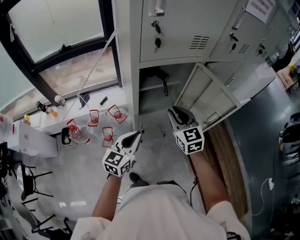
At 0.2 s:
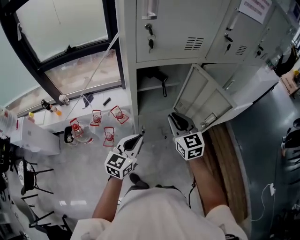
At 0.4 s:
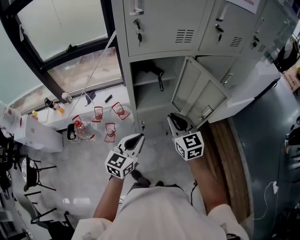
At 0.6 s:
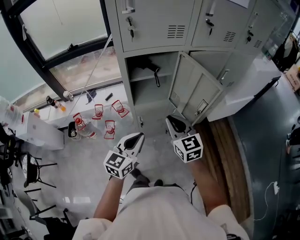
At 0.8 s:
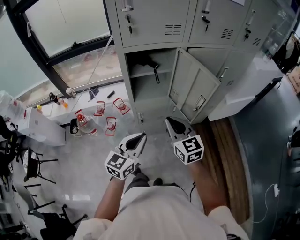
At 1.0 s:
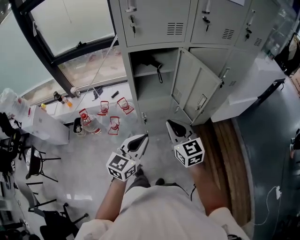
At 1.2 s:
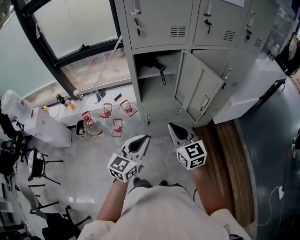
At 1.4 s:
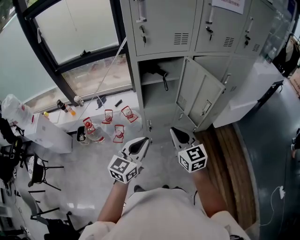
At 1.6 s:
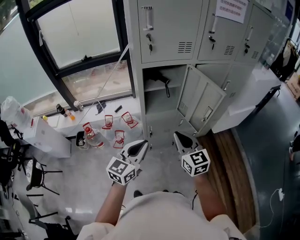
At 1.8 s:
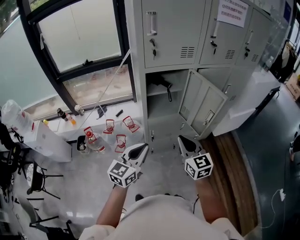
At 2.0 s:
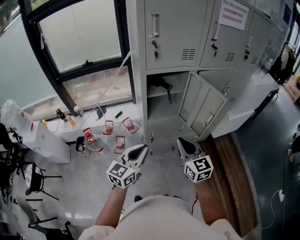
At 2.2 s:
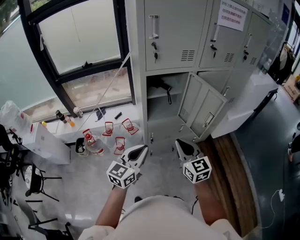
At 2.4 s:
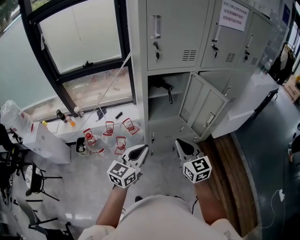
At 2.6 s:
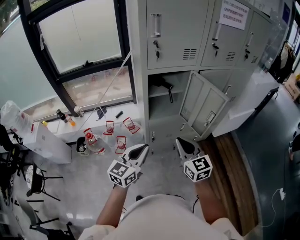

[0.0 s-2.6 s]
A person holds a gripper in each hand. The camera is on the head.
0.0 to 1.2 s: The right gripper heads backward, covering approximately 20 cm, while the left gripper heads backward and to the right, covering about 20 cm.
1.2 to 2.6 s: The left gripper moves to the left, approximately 10 cm.

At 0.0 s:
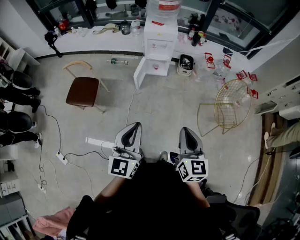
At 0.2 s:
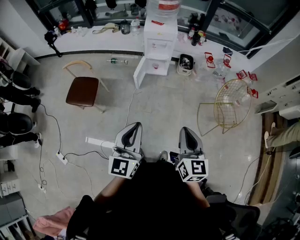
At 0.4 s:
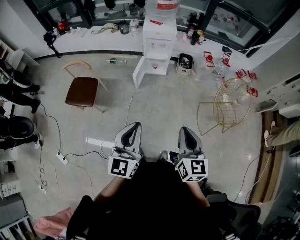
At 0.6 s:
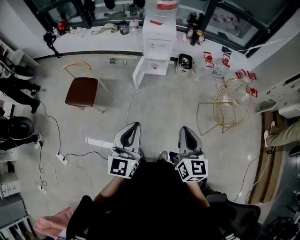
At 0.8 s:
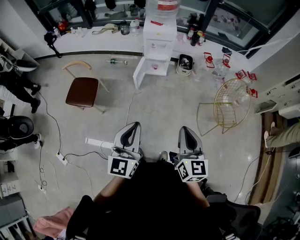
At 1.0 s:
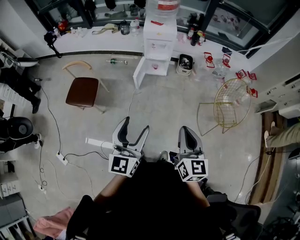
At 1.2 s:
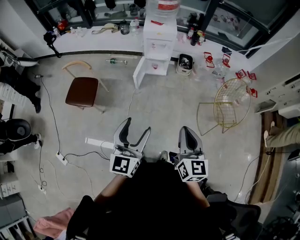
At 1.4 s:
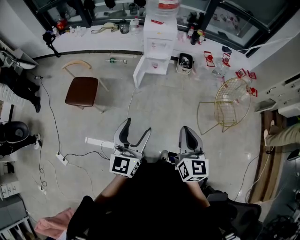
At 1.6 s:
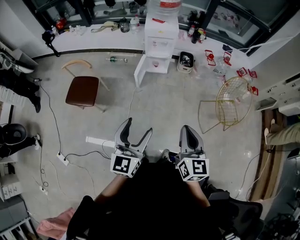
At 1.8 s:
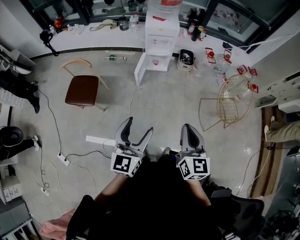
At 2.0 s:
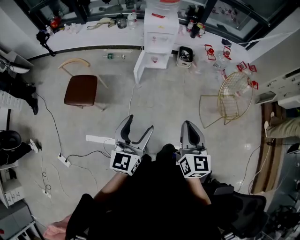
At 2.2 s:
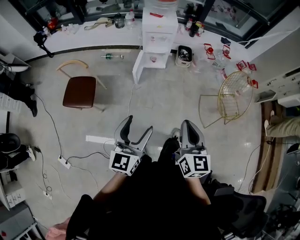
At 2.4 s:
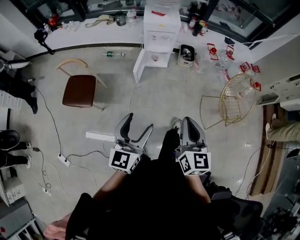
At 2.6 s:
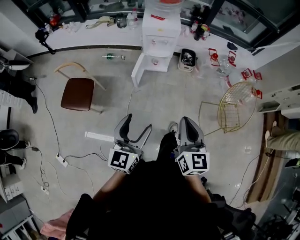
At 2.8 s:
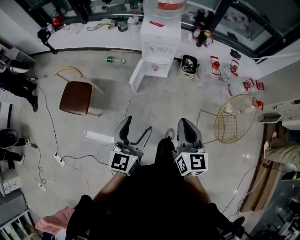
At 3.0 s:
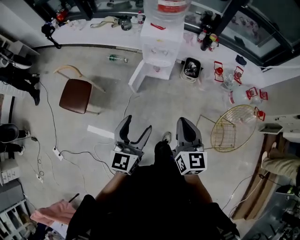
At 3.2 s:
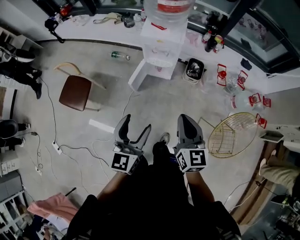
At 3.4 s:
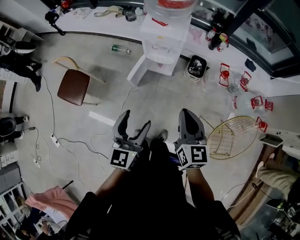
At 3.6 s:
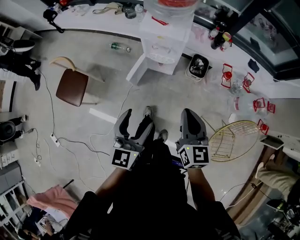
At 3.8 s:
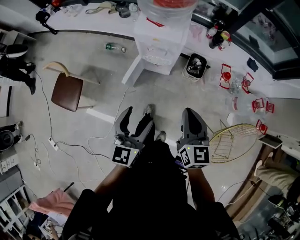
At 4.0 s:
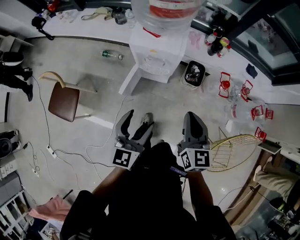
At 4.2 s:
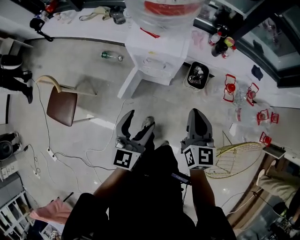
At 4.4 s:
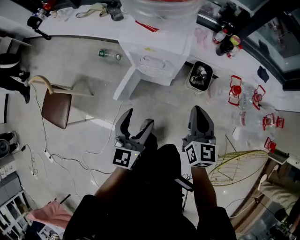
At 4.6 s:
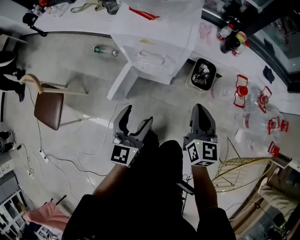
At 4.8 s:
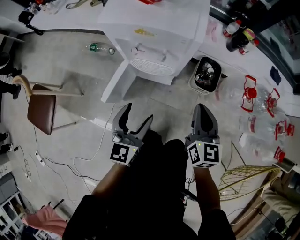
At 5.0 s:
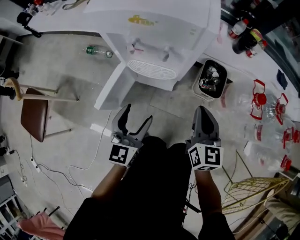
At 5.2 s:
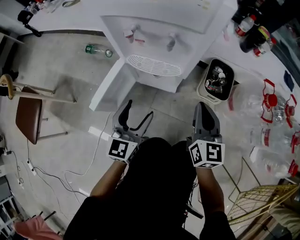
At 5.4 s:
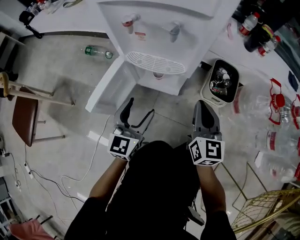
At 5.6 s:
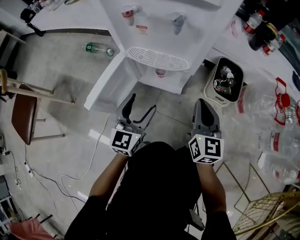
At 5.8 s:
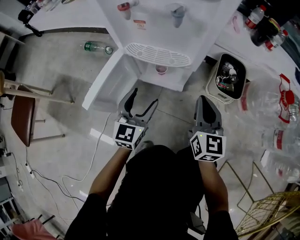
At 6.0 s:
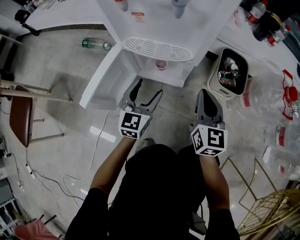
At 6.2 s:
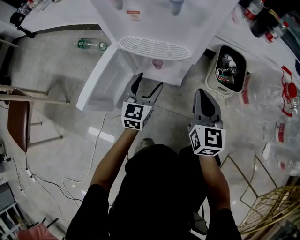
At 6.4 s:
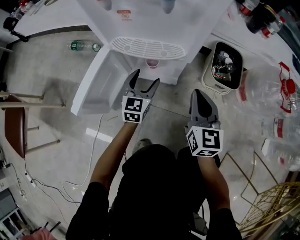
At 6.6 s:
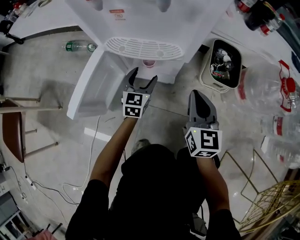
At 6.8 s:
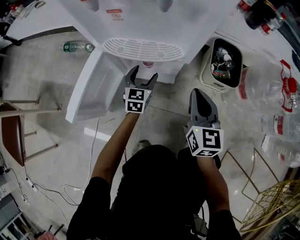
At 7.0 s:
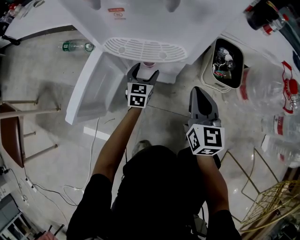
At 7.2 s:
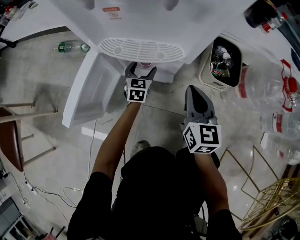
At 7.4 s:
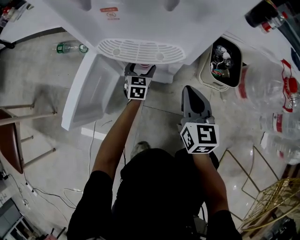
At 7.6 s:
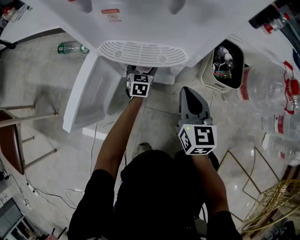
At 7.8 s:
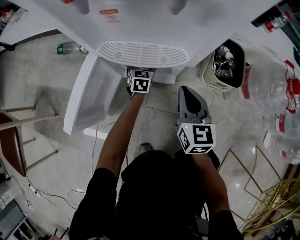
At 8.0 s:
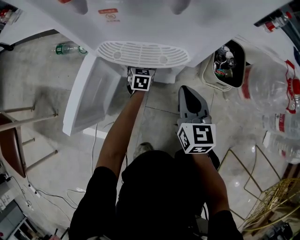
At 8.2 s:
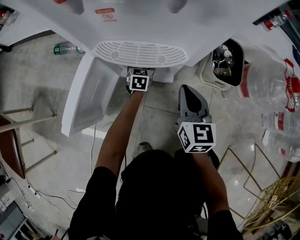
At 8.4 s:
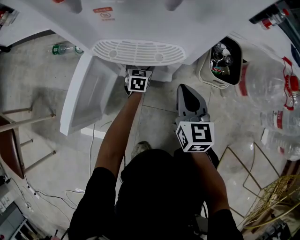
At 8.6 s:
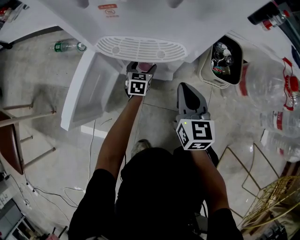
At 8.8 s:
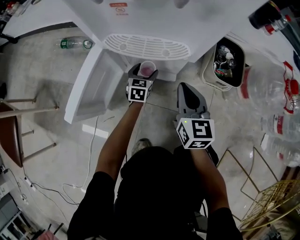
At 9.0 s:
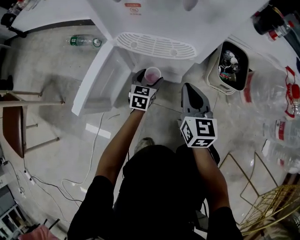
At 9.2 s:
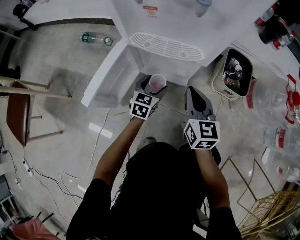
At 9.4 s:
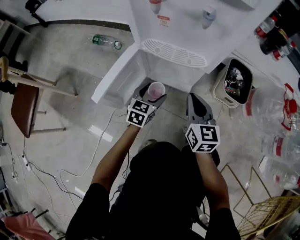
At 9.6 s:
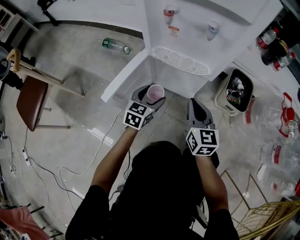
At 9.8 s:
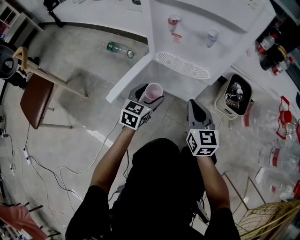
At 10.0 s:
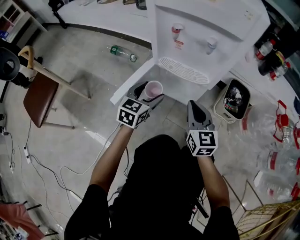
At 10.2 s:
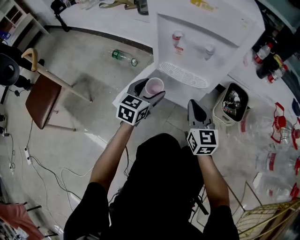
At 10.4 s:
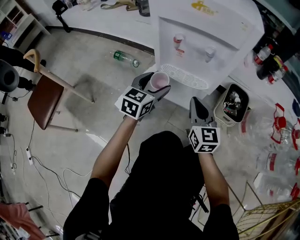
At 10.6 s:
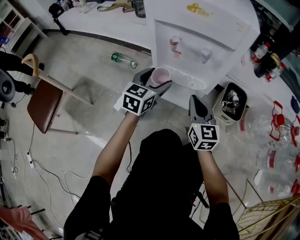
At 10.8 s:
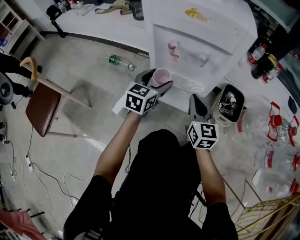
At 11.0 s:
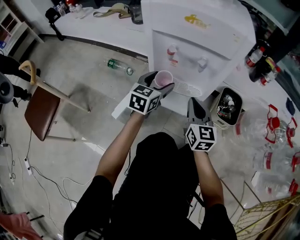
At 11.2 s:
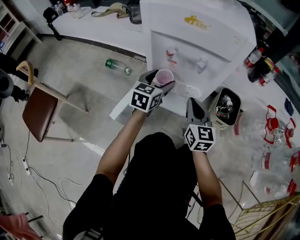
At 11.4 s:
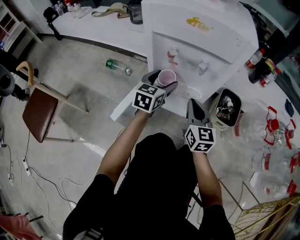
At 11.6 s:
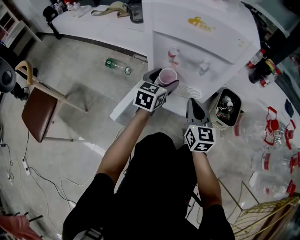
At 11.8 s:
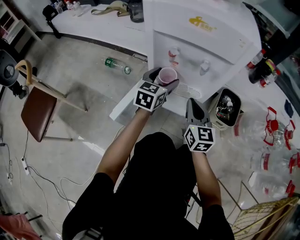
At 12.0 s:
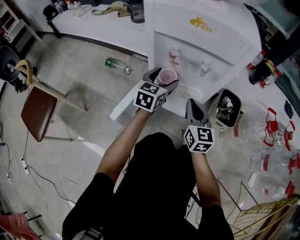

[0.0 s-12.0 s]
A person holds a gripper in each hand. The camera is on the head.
0.0 to 1.6 s: The left gripper opens.
1.6 to 3.0 s: The grippers both shift forward by some 30 cm.
3.0 to 4.4 s: Both grippers move forward and downward, approximately 40 cm.
4.4 to 6.0 s: Both grippers travel together downward, approximately 50 cm.
6.0 to 7.6 s: The left gripper travels downward and forward by approximately 25 cm, while the right gripper goes about 5 cm downward.
7.6 to 9.0 s: The left gripper is displaced backward by approximately 10 cm.
9.0 to 10.4 s: The left gripper shifts about 30 cm upward; the right gripper shifts approximately 15 cm upward.
10.4 to 12.0 s: The left gripper travels forward by approximately 10 cm.

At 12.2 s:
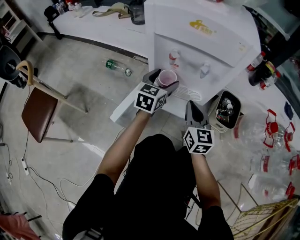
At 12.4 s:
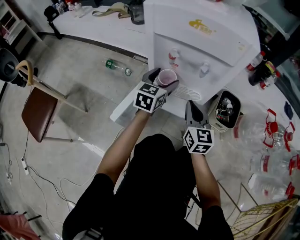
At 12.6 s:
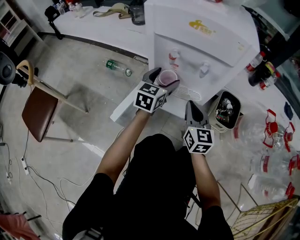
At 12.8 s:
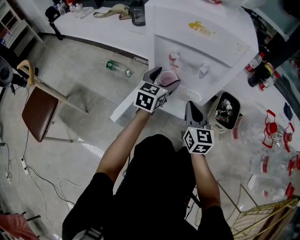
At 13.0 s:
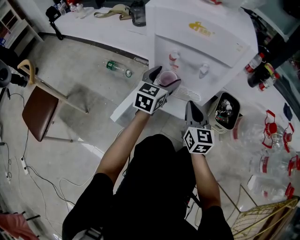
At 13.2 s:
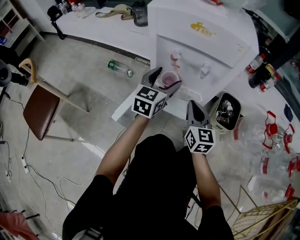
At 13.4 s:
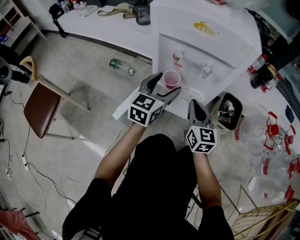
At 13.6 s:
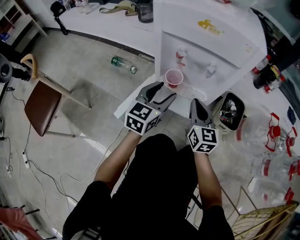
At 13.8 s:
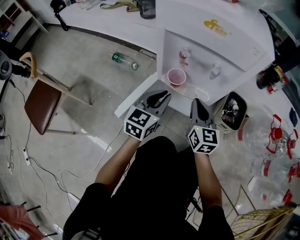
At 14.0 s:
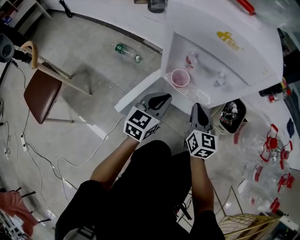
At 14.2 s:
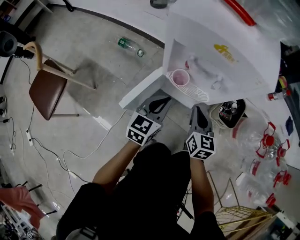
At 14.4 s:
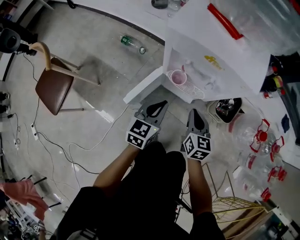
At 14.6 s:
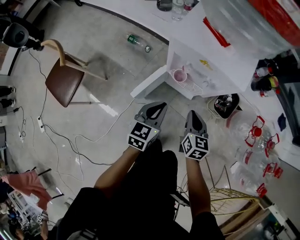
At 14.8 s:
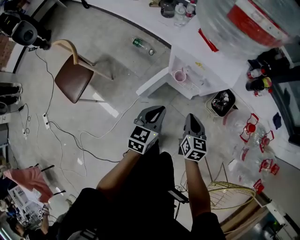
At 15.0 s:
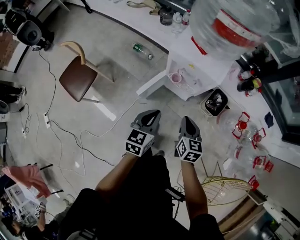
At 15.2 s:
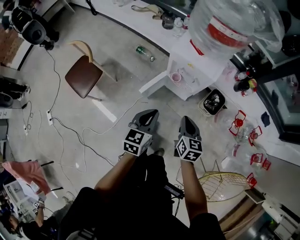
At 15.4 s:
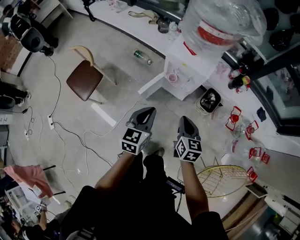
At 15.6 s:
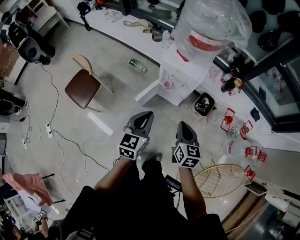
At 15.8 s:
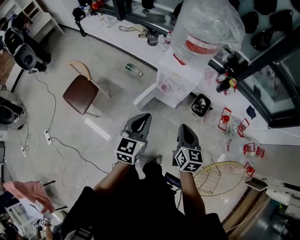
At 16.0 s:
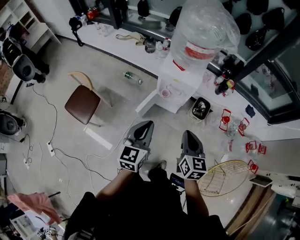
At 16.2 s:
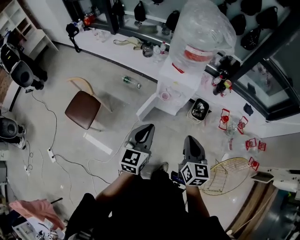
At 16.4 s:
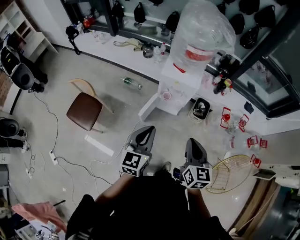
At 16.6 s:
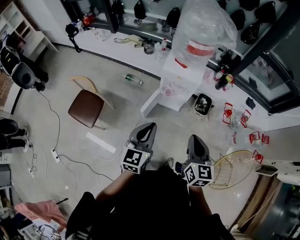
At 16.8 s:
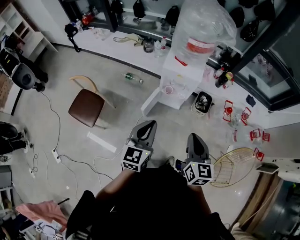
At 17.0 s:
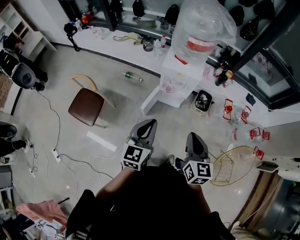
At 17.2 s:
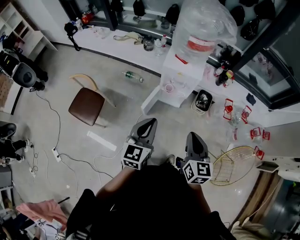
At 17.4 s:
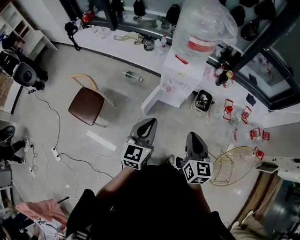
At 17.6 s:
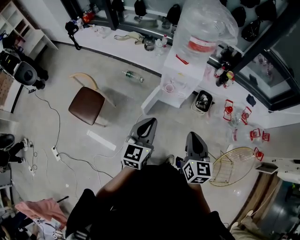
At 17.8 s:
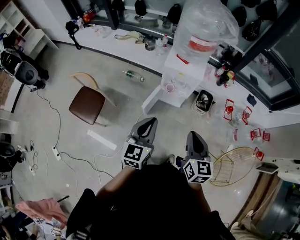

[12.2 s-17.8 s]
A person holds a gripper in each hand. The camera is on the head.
12.2 to 13.6 s: The left gripper shifts approximately 10 cm backward.
13.6 to 15.0 s: Both grippers travel together upward and backward, about 35 cm. The left gripper turns by some 20 degrees, and closes its fingers. The right gripper changes its angle by about 30 degrees.
15.0 to 16.4 s: Both grippers travel together upward and backward, roughly 35 cm.
16.4 to 17.8 s: The grippers stay close to where they were, moving slightly.

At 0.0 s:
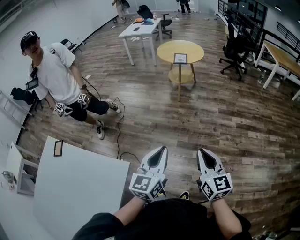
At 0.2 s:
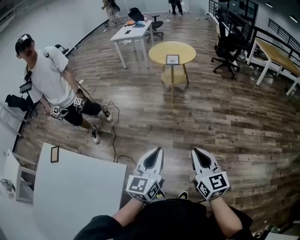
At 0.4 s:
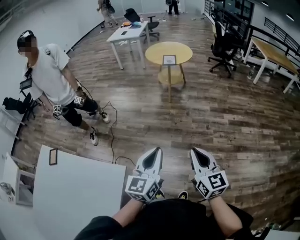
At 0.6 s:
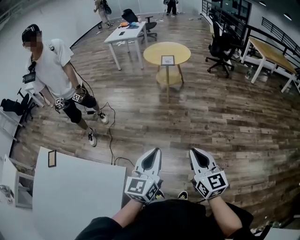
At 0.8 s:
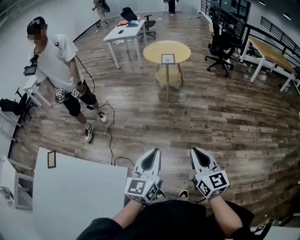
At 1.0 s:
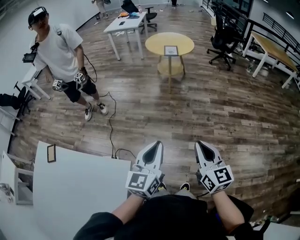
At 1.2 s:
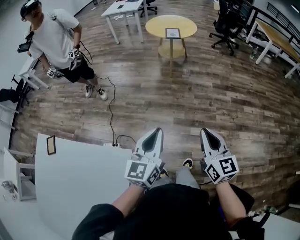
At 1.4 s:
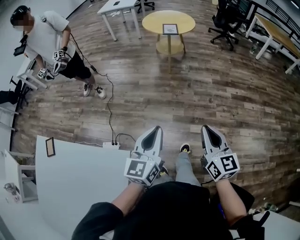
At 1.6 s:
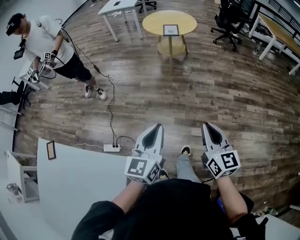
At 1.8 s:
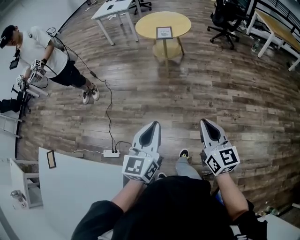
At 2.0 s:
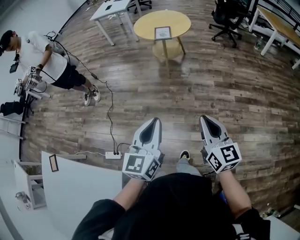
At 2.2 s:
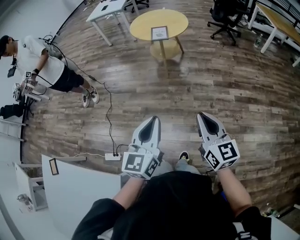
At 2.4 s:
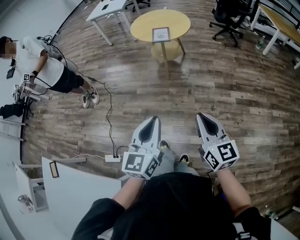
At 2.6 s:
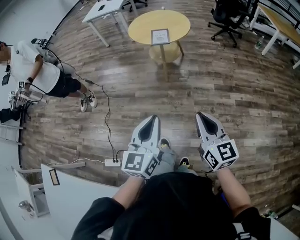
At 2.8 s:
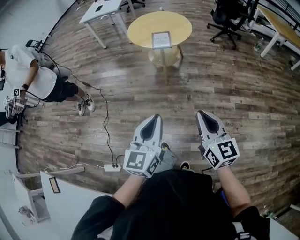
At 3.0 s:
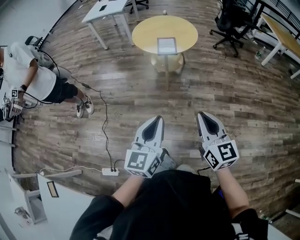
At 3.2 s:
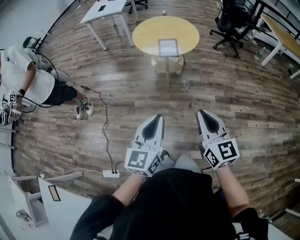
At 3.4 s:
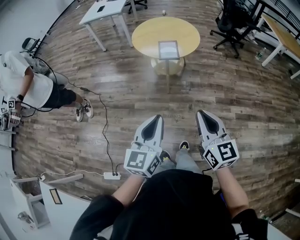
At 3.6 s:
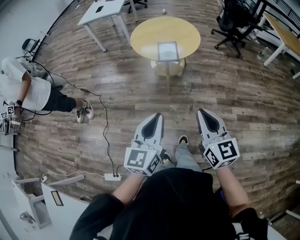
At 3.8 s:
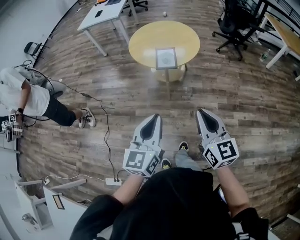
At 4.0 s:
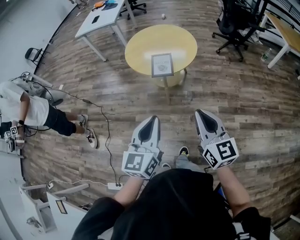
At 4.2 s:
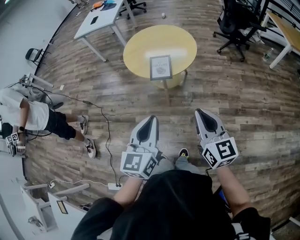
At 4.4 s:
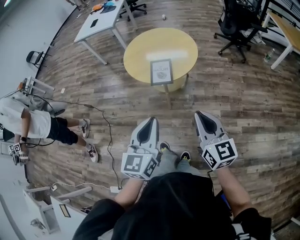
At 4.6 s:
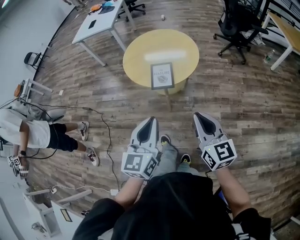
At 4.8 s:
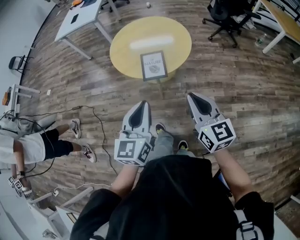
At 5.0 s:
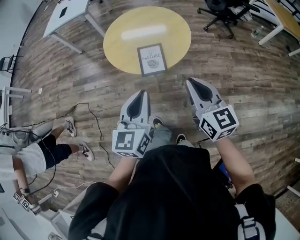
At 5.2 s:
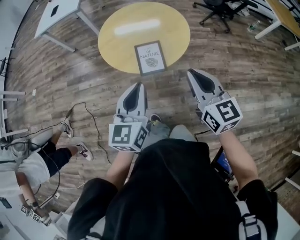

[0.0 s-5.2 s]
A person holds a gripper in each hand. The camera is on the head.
0.0 to 1.8 s: The grippers both shift forward by some 15 cm.
1.8 to 3.4 s: The grippers both shift forward by about 35 cm.
3.4 to 5.2 s: The two grippers travel together, forward, some 40 cm.
